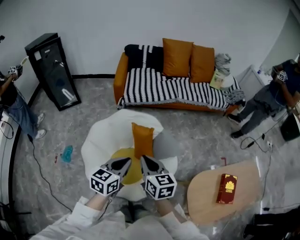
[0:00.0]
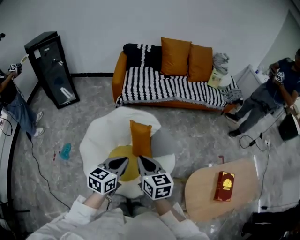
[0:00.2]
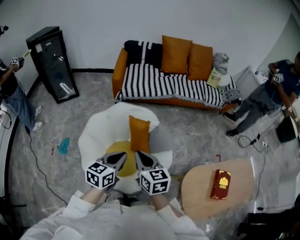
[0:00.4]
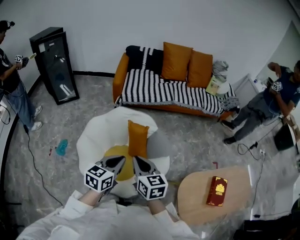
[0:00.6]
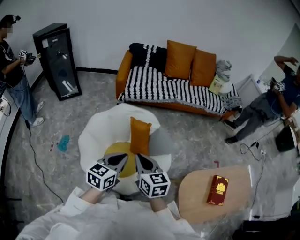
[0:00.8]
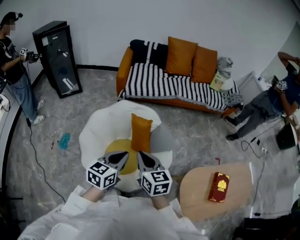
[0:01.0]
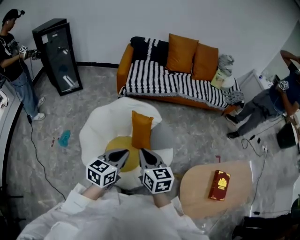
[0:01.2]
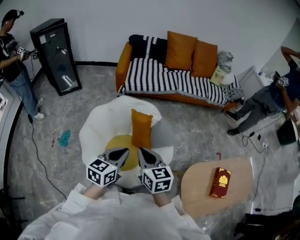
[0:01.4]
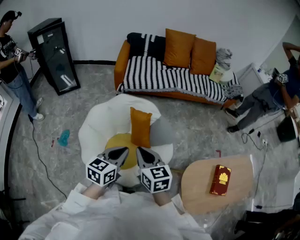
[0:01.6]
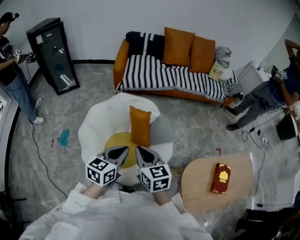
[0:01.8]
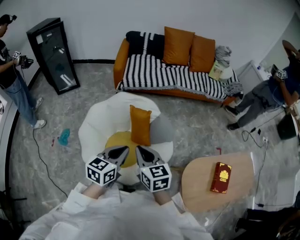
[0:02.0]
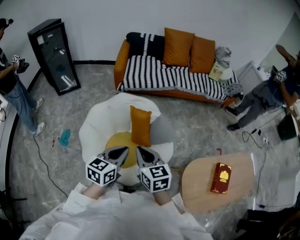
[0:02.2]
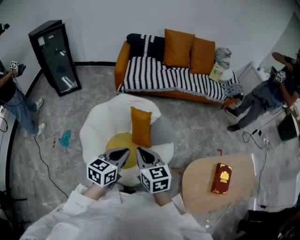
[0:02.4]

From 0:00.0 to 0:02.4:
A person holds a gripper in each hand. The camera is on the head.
From 0:00.0 to 0:01.2: The grippers stay close to where they were, moving slightly.
From 0:01.2 to 0:02.4: The grippers stay close to where they were, moving slightly.

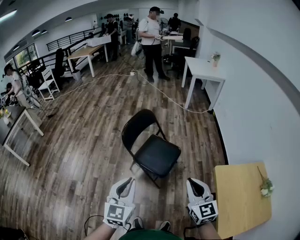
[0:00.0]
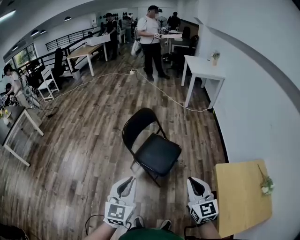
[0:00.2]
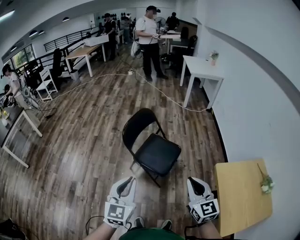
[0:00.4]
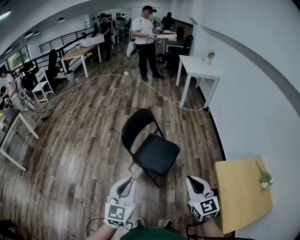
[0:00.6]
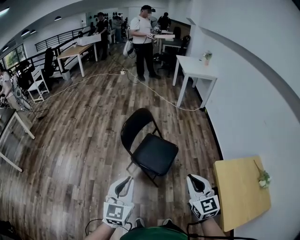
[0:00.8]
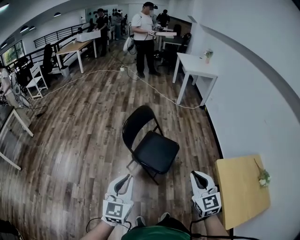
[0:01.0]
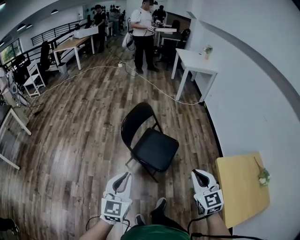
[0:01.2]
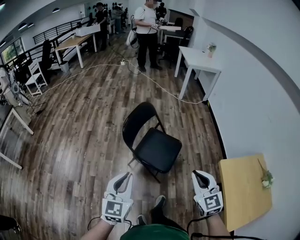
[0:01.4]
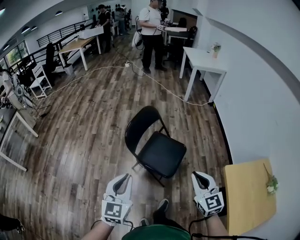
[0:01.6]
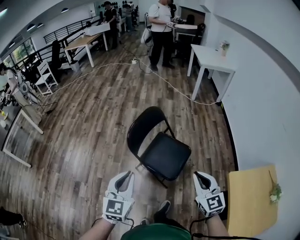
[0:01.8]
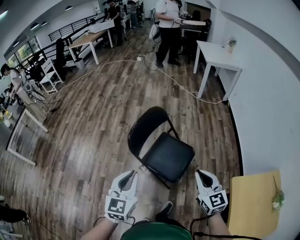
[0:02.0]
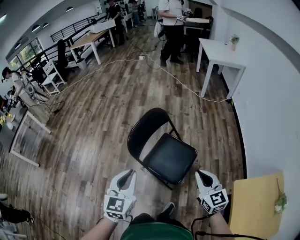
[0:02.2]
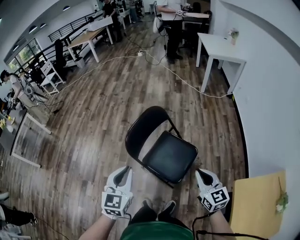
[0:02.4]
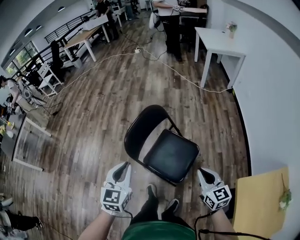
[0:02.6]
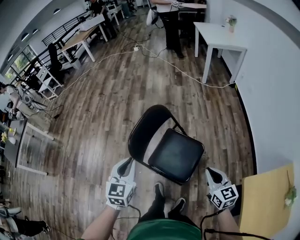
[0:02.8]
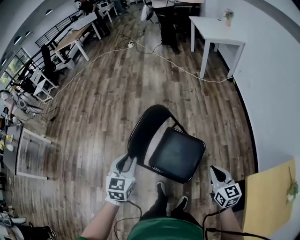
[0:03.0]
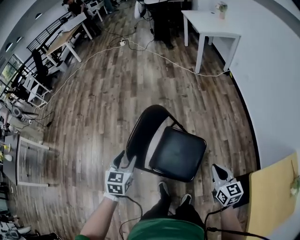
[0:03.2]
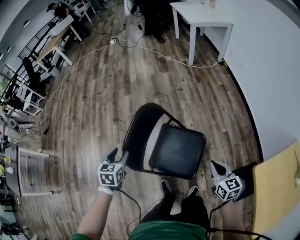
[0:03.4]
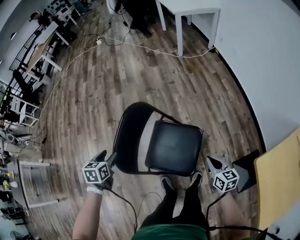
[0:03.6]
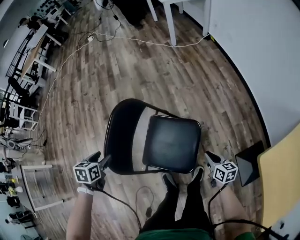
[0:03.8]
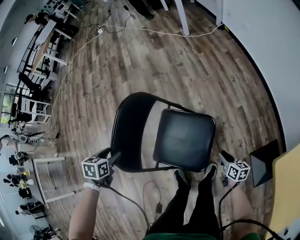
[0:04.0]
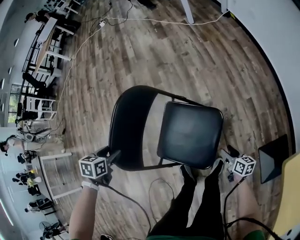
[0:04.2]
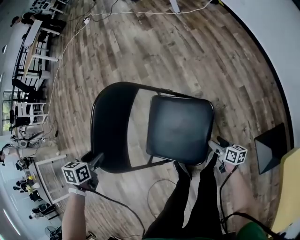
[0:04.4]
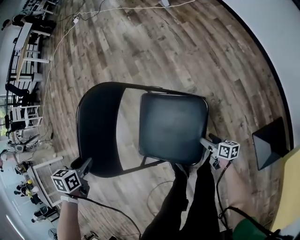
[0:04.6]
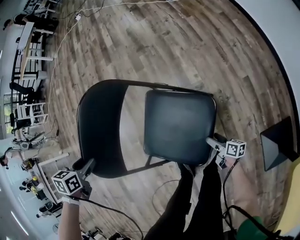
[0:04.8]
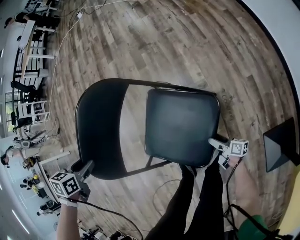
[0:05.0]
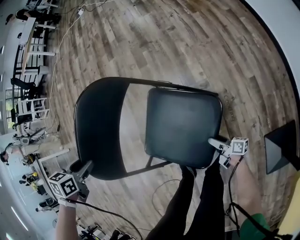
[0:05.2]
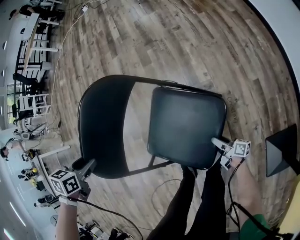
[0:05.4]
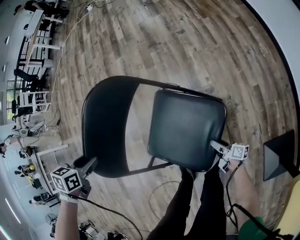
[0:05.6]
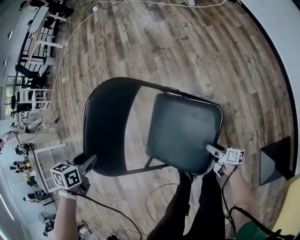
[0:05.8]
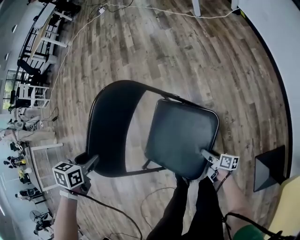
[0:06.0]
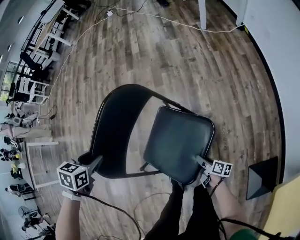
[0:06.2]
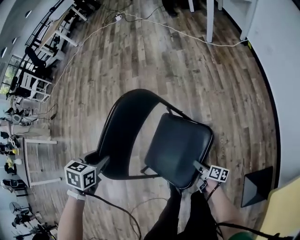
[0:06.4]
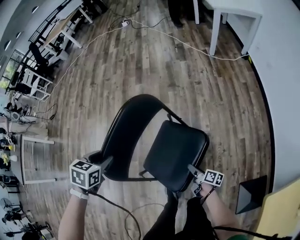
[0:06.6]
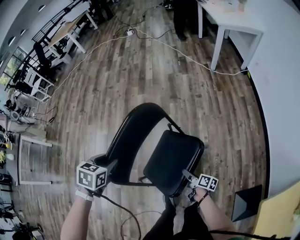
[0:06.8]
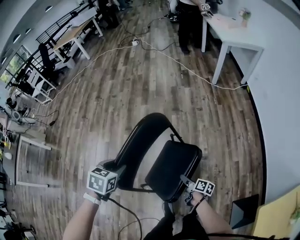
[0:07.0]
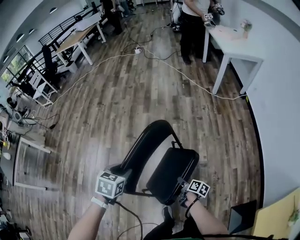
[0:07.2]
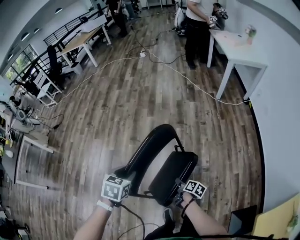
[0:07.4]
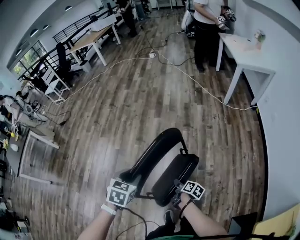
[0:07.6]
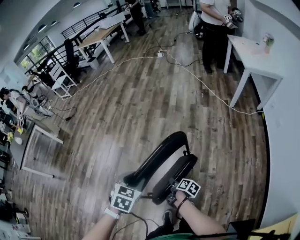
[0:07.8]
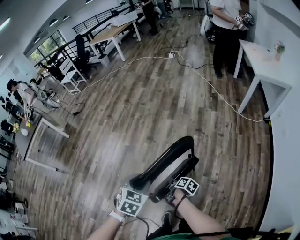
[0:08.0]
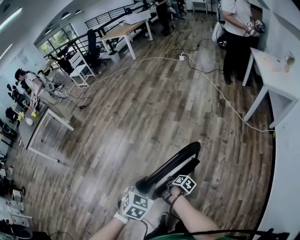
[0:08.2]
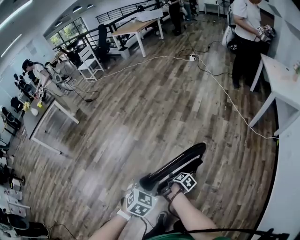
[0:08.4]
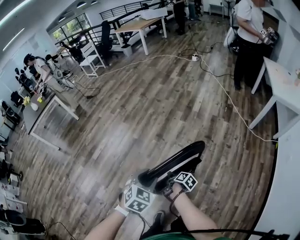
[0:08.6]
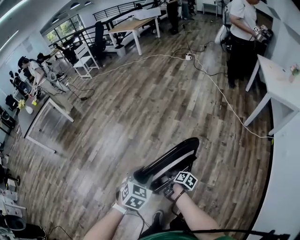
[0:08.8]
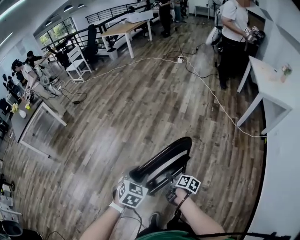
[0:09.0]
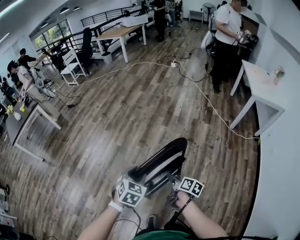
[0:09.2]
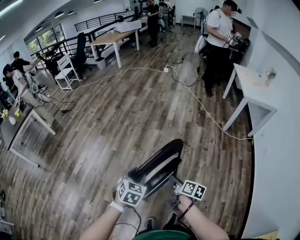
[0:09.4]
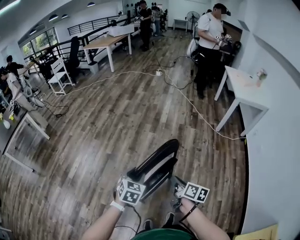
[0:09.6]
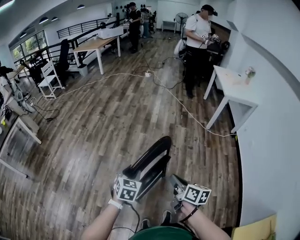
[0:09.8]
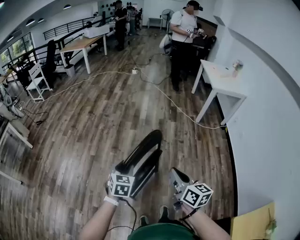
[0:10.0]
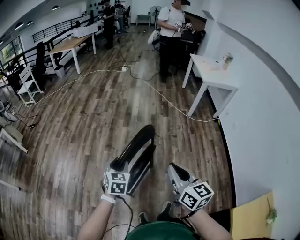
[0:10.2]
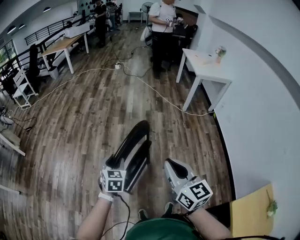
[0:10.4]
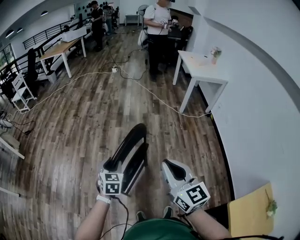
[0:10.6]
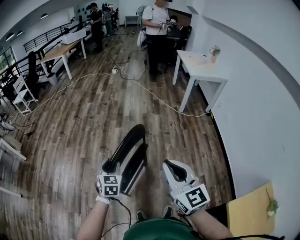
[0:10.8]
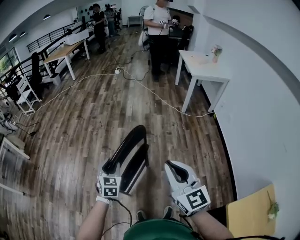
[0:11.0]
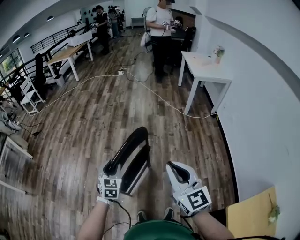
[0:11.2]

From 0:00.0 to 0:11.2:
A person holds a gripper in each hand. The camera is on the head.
From 0:00.0 to 0:01.6: The two grippers go some 15 cm forward and to the left.
From 0:01.6 to 0:03.2: The left gripper moves forward and downward, approximately 40 cm, swivels roughly 30 degrees, and opens; the right gripper heads forward, downward and to the right, covering roughly 35 cm, and changes its angle by roughly 30 degrees.
From 0:03.2 to 0:04.8: The left gripper shifts roughly 25 cm downward and forward, and tilts its fingers roughly 30 degrees downward. Meanwhile the right gripper shifts about 50 cm downward, rolls clockwise, seen from behind, by about 60 degrees, and opens up.
From 0:04.8 to 0:06.4: The right gripper is displaced upward, to the left and forward by roughly 20 cm. The left gripper is displaced upward and to the left by some 10 cm.
From 0:06.4 to 0:08.0: The right gripper travels to the left, upward and forward by roughly 40 cm, while the left gripper heads upward, covering some 15 cm.
From 0:08.0 to 0:09.6: The right gripper goes some 25 cm upward, and changes its angle by some 30 degrees.
From 0:09.6 to 0:11.2: The right gripper goes roughly 30 cm upward, backward and to the right, and rotates around the line of its fingers by about 60 degrees, counterclockwise from behind. Meanwhile the left gripper goes some 10 cm backward and to the right.

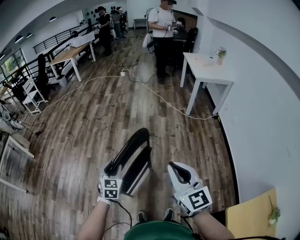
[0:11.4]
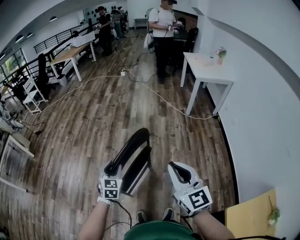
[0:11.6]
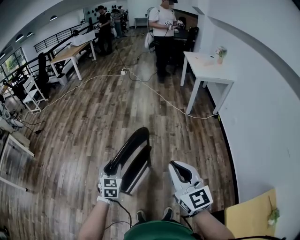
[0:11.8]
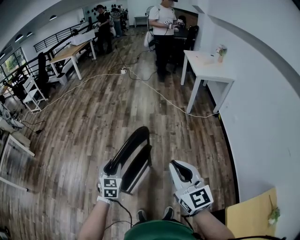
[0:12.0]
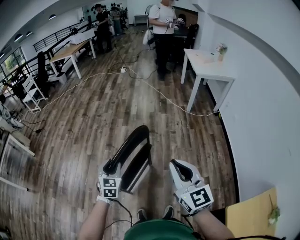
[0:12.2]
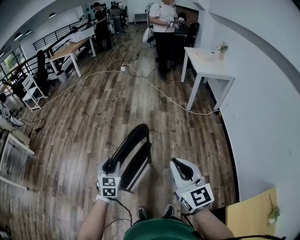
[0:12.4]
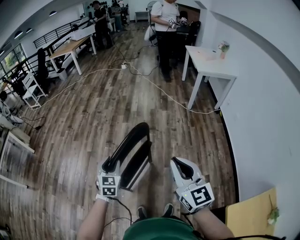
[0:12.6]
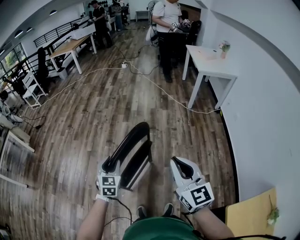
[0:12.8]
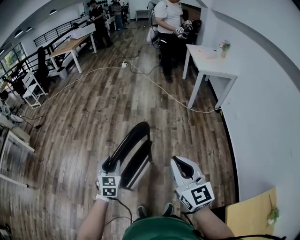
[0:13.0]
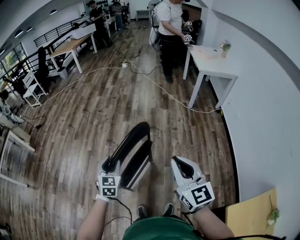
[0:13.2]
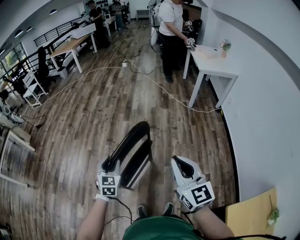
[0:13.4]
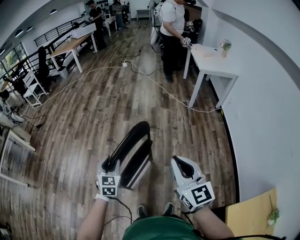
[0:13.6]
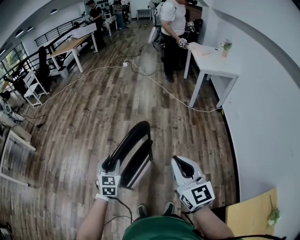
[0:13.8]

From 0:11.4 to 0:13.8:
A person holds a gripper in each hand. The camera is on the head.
From 0:11.4 to 0:13.8: There are only small adjustments of the grippers.

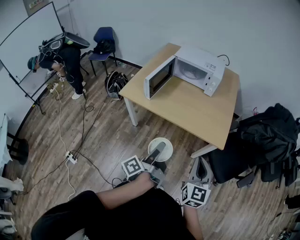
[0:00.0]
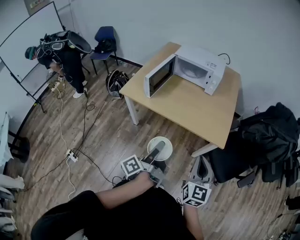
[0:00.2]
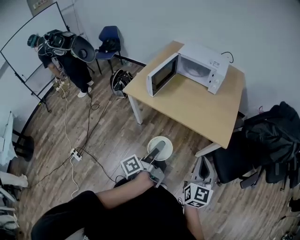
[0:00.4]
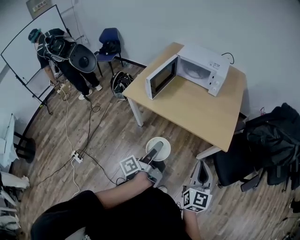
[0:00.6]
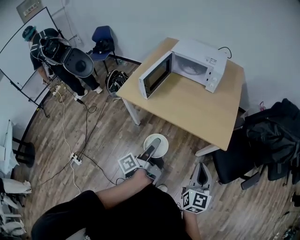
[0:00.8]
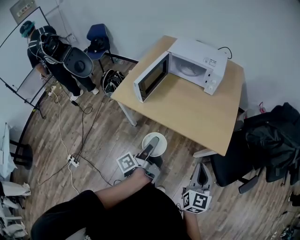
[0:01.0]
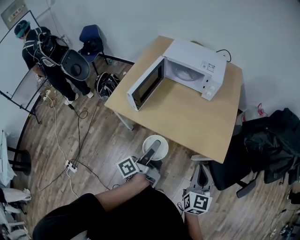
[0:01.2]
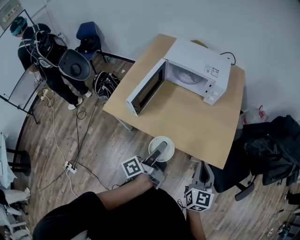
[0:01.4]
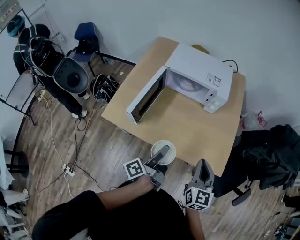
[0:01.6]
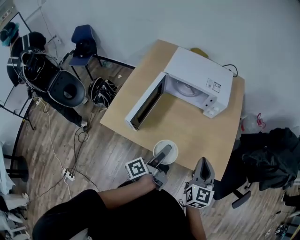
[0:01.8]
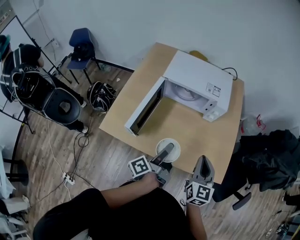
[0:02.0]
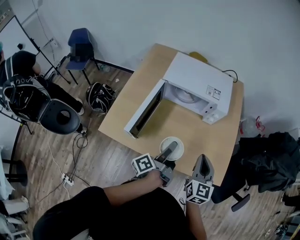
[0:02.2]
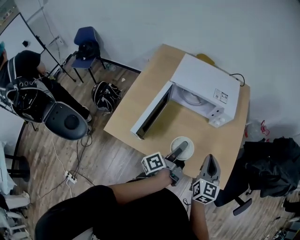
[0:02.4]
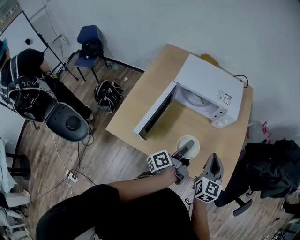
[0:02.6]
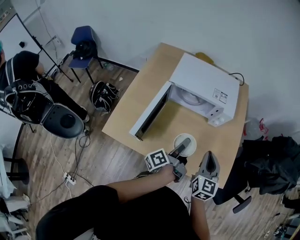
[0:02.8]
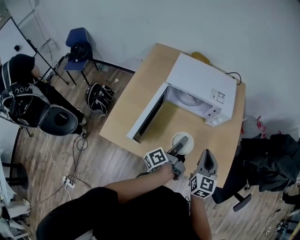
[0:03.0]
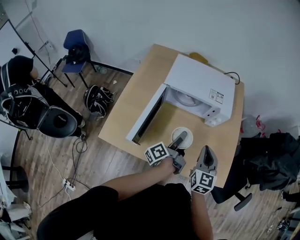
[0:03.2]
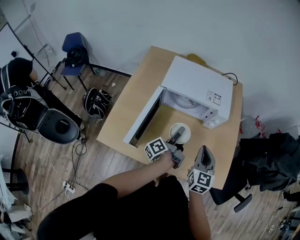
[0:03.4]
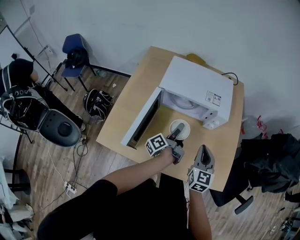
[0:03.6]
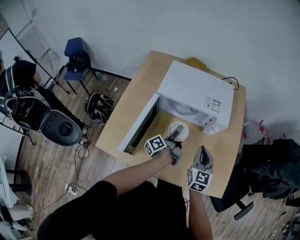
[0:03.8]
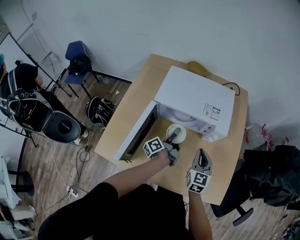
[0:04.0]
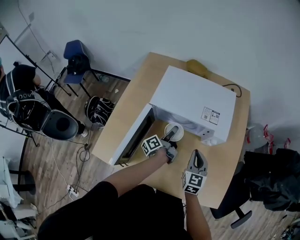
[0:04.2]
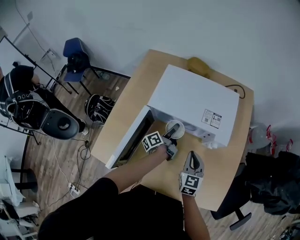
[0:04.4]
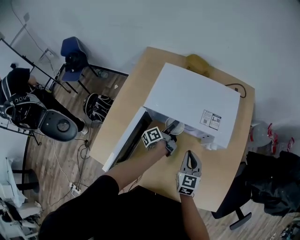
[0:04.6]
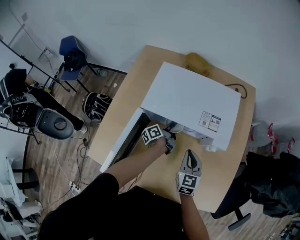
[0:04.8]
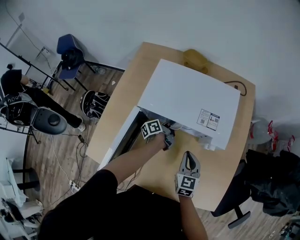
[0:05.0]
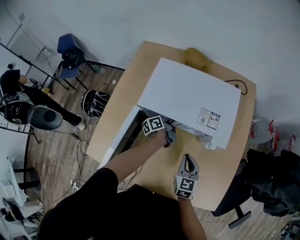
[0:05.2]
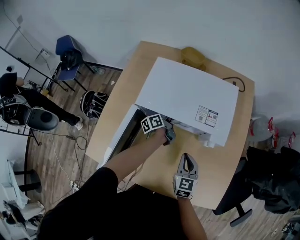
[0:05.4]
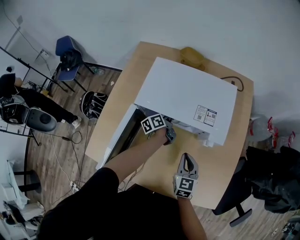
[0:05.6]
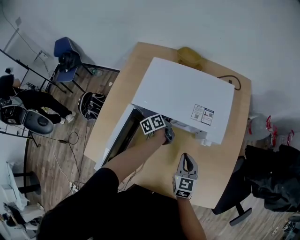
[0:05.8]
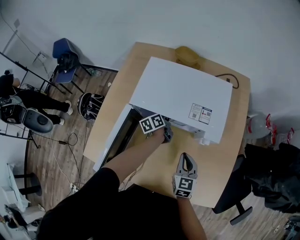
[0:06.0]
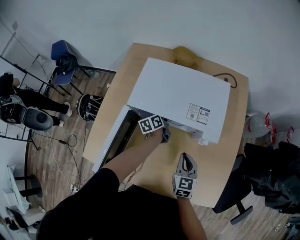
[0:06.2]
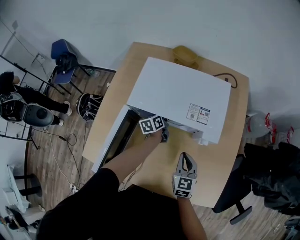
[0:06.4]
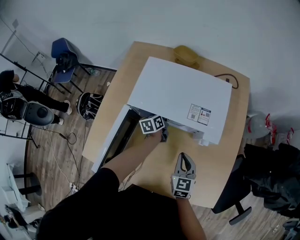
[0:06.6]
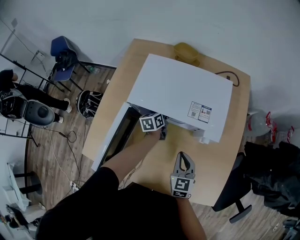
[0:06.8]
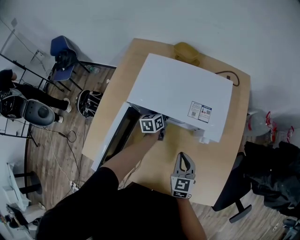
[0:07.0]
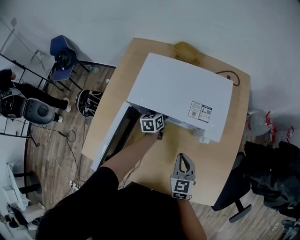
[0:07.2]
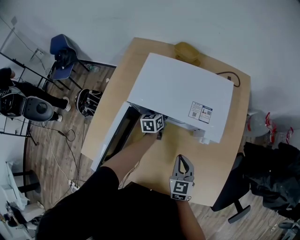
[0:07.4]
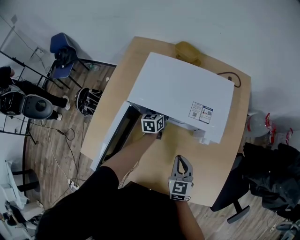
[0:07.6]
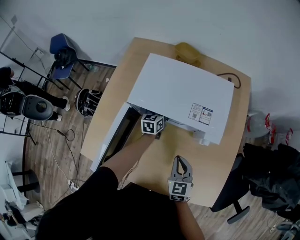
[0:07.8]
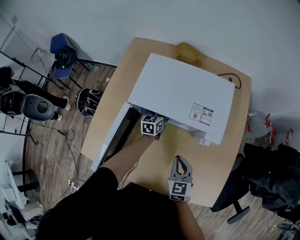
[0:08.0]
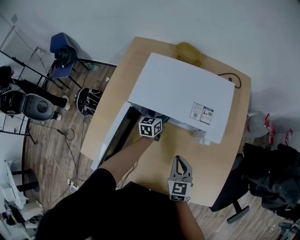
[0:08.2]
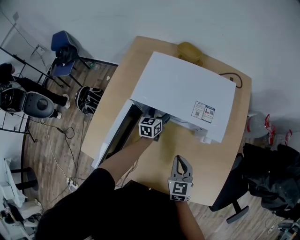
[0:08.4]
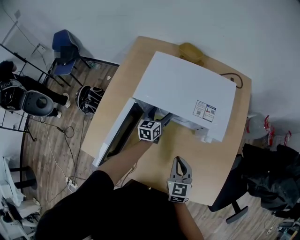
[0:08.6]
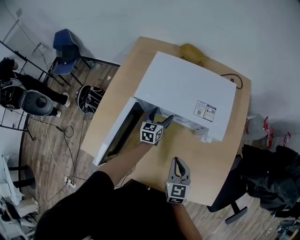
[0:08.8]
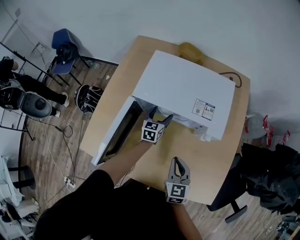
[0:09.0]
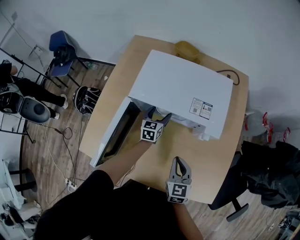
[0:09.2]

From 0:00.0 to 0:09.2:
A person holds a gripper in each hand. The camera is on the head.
From 0:00.0 to 0:01.6: The two grippers go about 25 cm forward.
From 0:01.6 to 0:03.0: The left gripper is displaced forward by about 15 cm, while the right gripper travels forward and to the left by approximately 15 cm.
From 0:03.0 to 0:04.6: The grippers both shift forward and downward by about 25 cm.
From 0:04.6 to 0:06.2: The left gripper is displaced forward by some 5 cm, and swivels approximately 40 degrees.
From 0:06.2 to 0:07.6: The left gripper rotates some 30 degrees.
From 0:07.6 to 0:09.2: The grippers move only a little.
